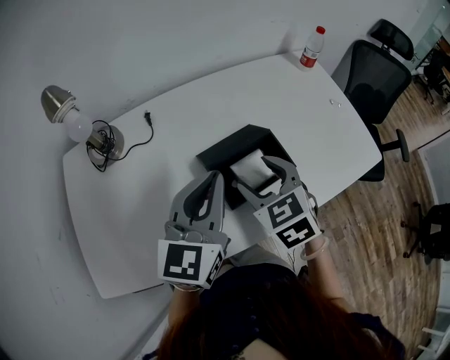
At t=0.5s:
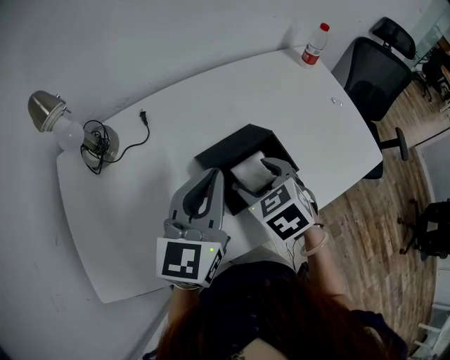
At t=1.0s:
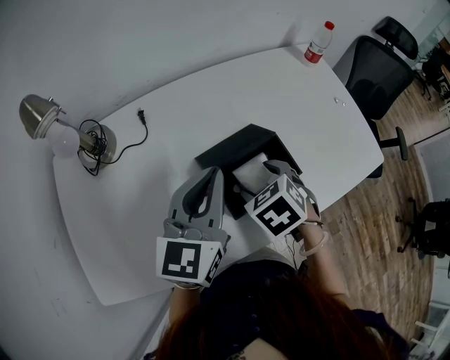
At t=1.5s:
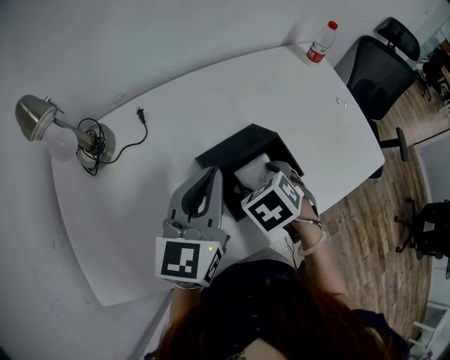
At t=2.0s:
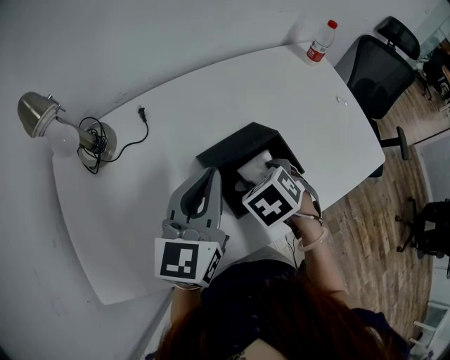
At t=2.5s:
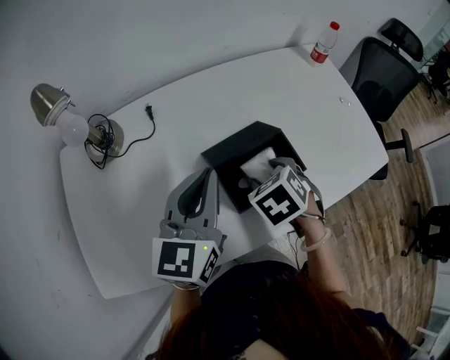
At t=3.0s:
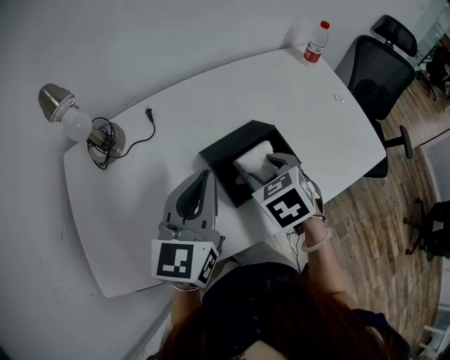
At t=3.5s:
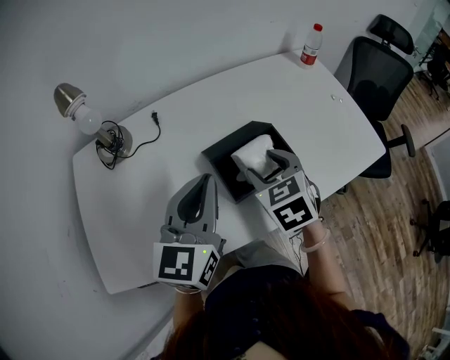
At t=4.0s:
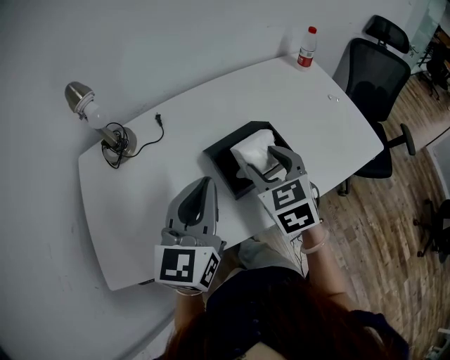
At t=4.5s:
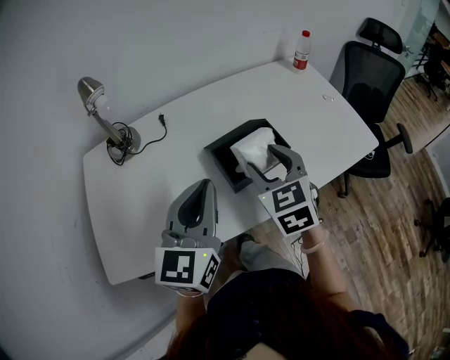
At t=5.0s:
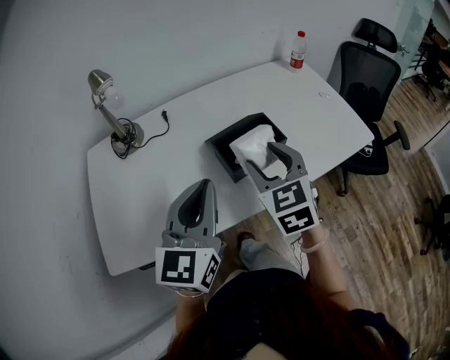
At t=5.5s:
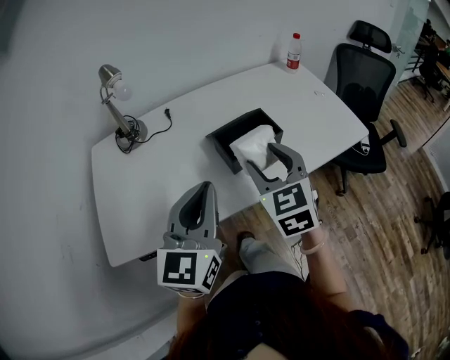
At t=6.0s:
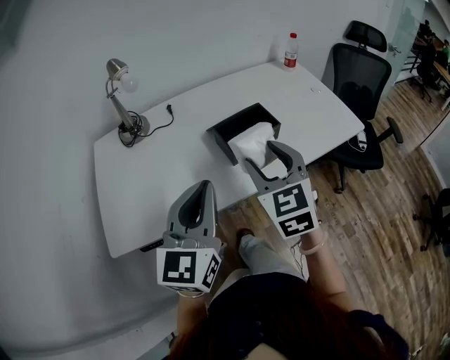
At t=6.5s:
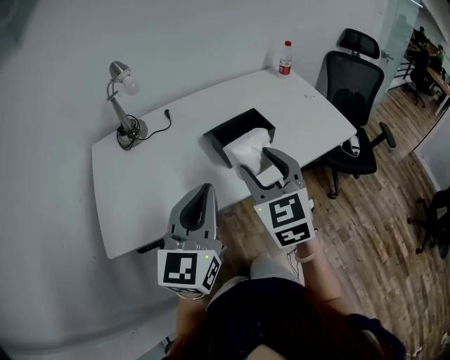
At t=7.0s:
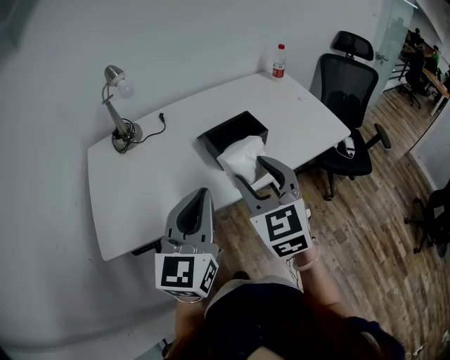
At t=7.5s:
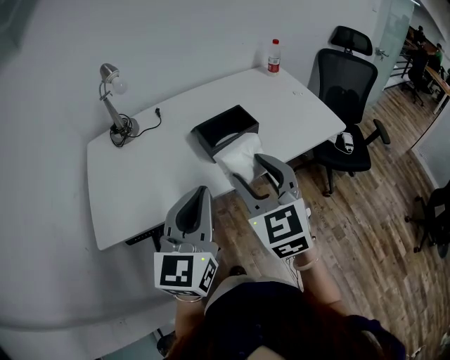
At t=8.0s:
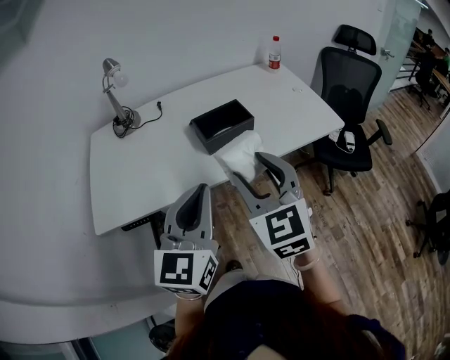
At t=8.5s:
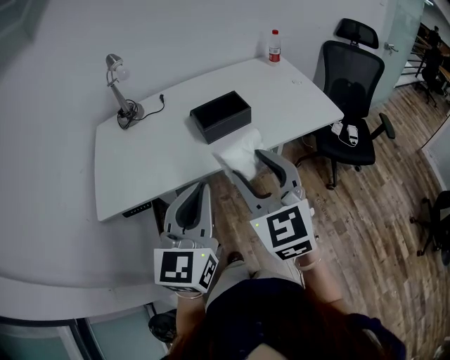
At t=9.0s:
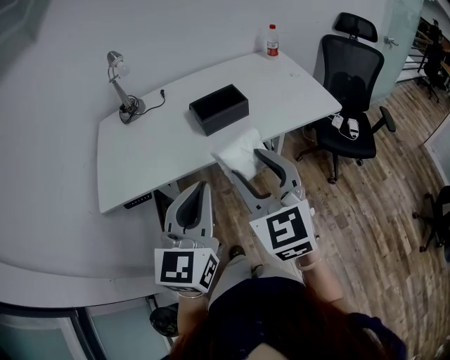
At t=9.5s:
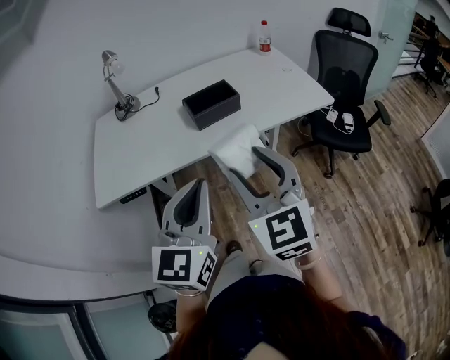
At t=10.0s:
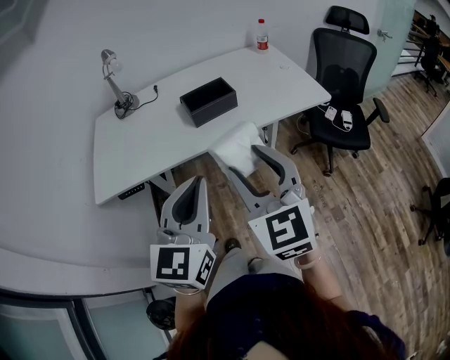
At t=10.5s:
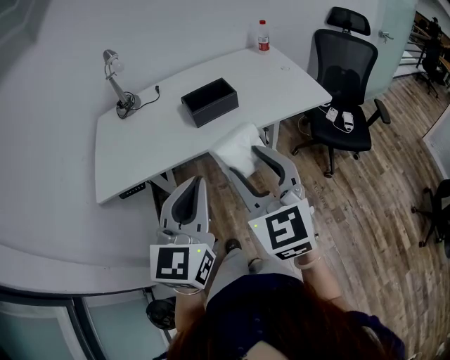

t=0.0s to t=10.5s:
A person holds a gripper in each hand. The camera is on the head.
t=0.0s to t=2.0s: The right gripper travels downward by roughly 10 cm, and angles its fingers downward, by some 30 degrees.
t=2.0s to t=4.0s: The right gripper travels upward by some 10 cm, and tips its fingers upward by approximately 40 degrees; the left gripper moves backward, roughly 10 cm.
t=4.0s to t=6.5s: The right gripper goes about 20 cm backward and upward. The left gripper travels backward by about 20 cm.
t=6.5s to t=8.5s: Both grippers move backward and to the right, approximately 15 cm.
t=8.5s to t=10.5s: Both grippers travel together backward, approximately 10 cm.

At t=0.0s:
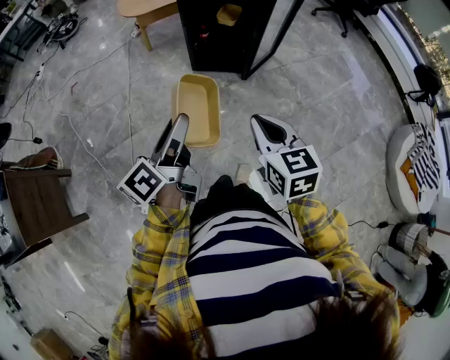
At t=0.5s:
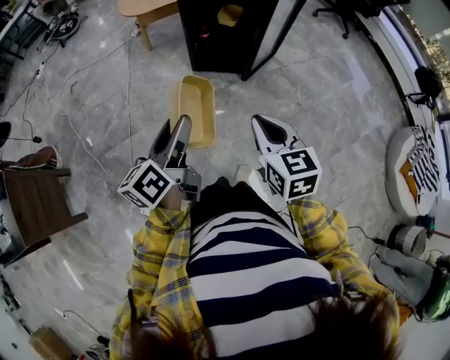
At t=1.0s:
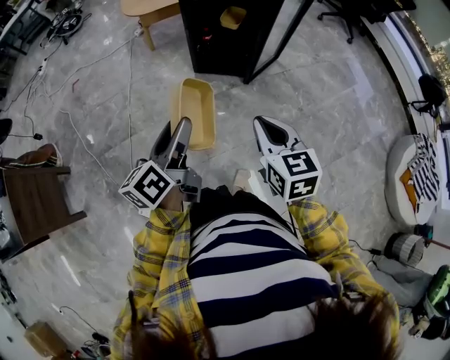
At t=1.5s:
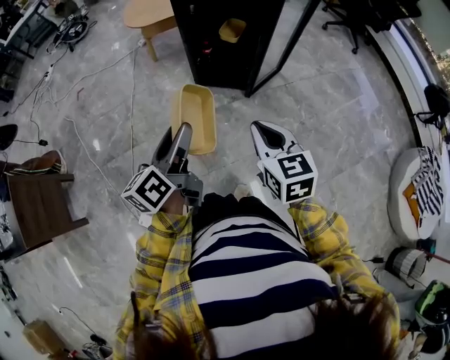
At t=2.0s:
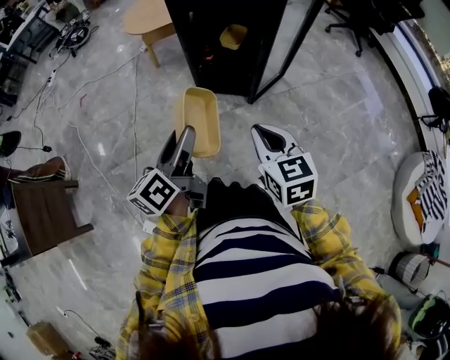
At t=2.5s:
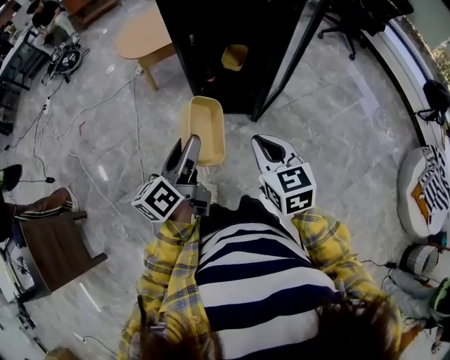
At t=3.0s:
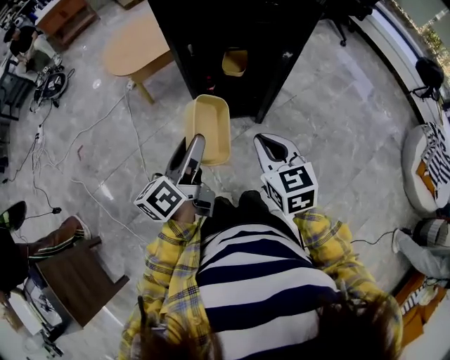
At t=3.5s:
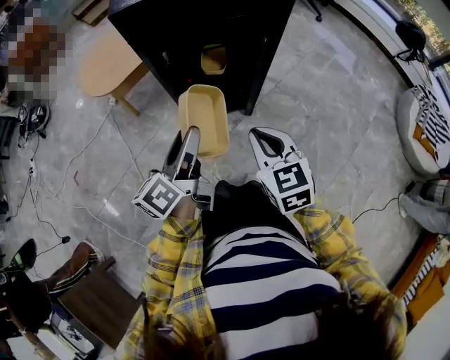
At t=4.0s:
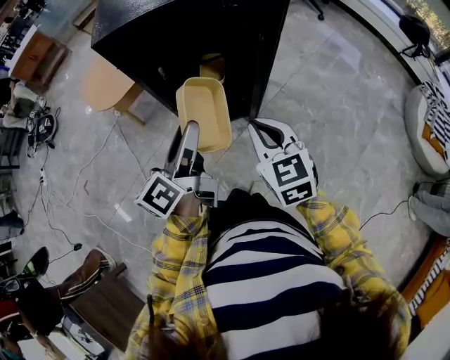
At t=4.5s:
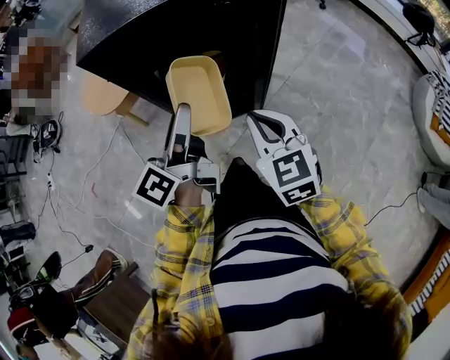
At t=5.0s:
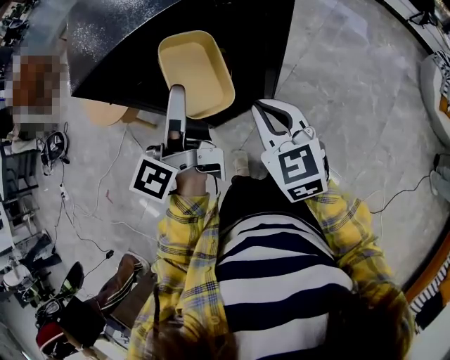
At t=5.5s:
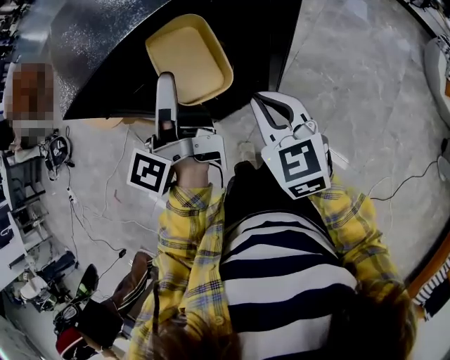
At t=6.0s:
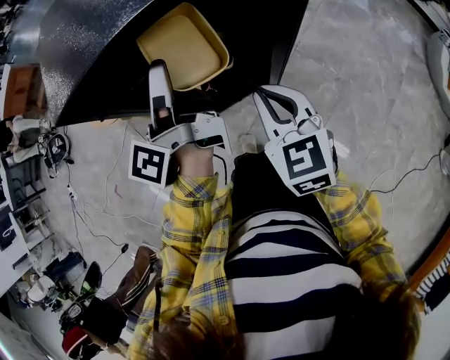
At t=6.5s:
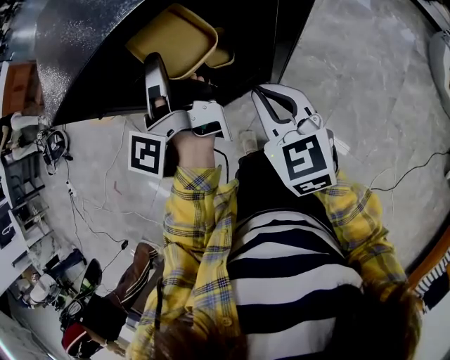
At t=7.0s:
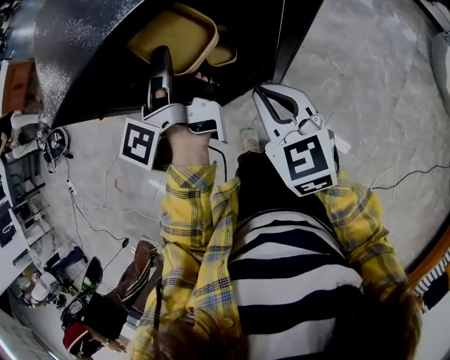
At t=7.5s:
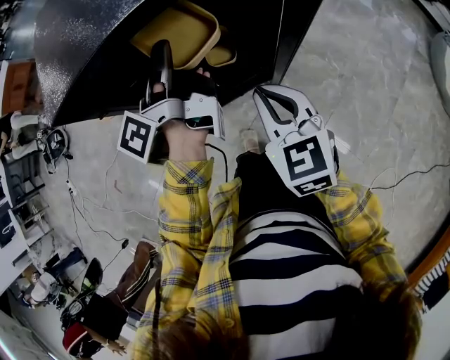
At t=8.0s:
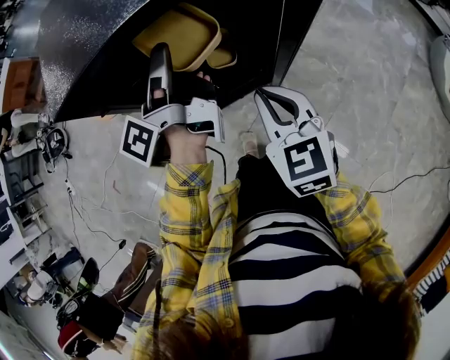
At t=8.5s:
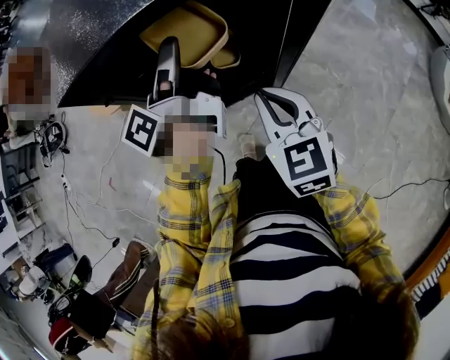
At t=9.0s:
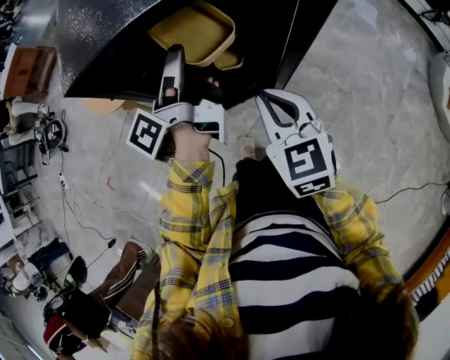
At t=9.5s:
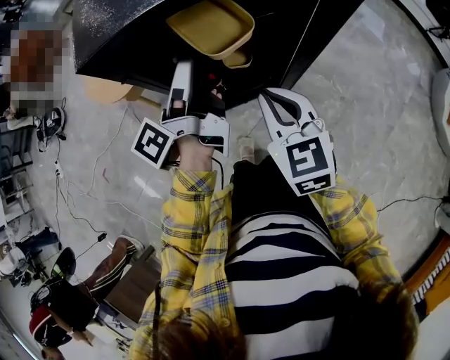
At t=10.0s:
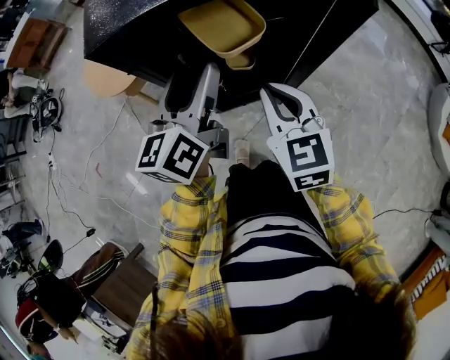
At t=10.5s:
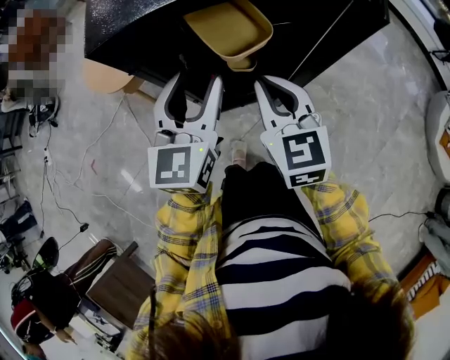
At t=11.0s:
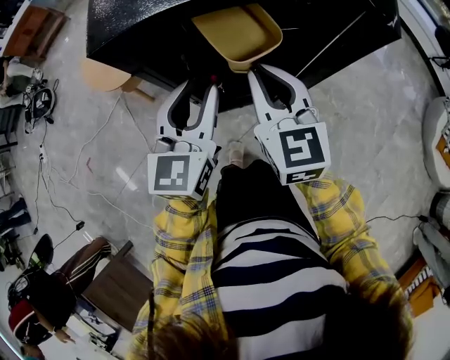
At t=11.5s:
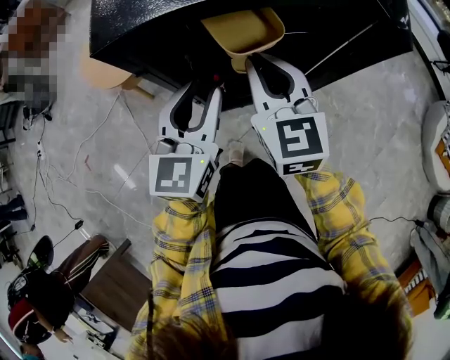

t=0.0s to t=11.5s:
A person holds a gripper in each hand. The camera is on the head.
t=0.0s to t=2.0s: The grippers both shift forward and to the right by approximately 15 cm.
t=2.0s to t=4.0s: Both grippers move forward, approximately 20 cm. The left gripper rotates some 20 degrees; the right gripper rotates some 20 degrees.
t=4.0s to t=6.0s: The right gripper goes roughly 10 cm forward, while the left gripper heads forward, covering roughly 20 cm, and changes its angle by approximately 20 degrees.
t=6.0s to t=7.5s: The grippers stay close to where they were, moving slightly.
t=7.5s to t=9.5s: The left gripper ends up some 5 cm from where it was.
t=9.5s to t=11.5s: The right gripper travels forward by approximately 10 cm, while the left gripper rolls clockwise, seen from behind, by about 80 degrees, and closes.

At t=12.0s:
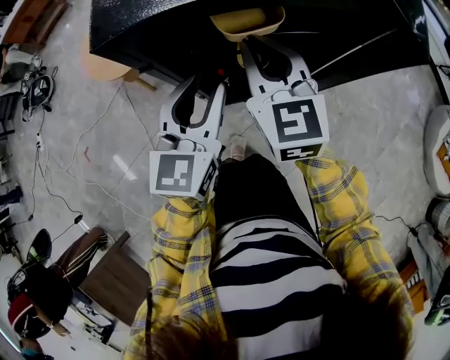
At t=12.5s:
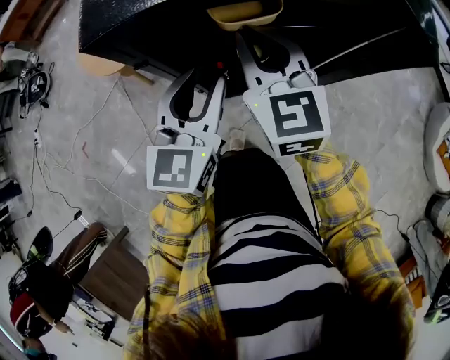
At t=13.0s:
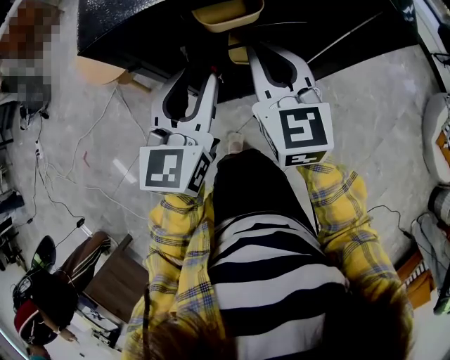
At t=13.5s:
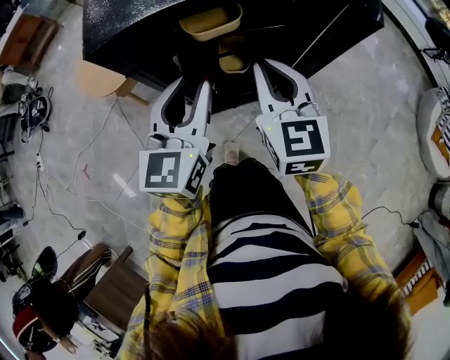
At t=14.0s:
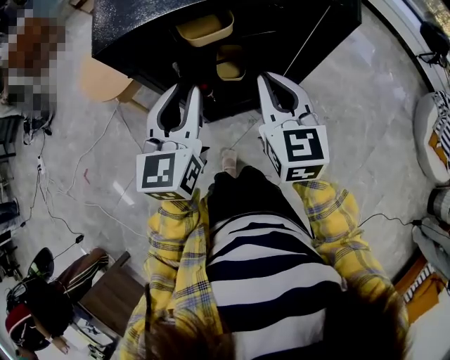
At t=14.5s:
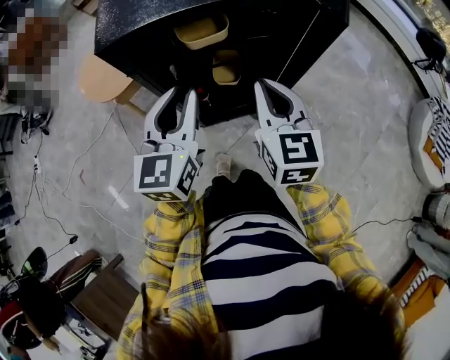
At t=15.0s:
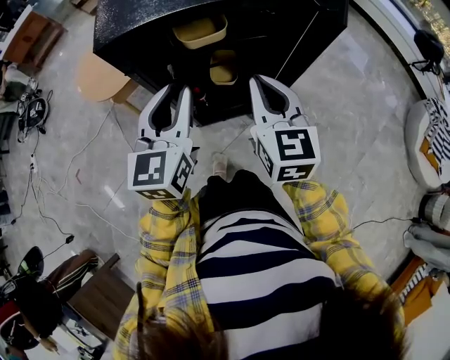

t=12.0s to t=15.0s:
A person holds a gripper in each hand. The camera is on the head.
t=12.0s to t=13.5s: The right gripper travels to the right by some 5 cm.
t=13.5s to t=15.0s: There are only small adjustments of the grippers.

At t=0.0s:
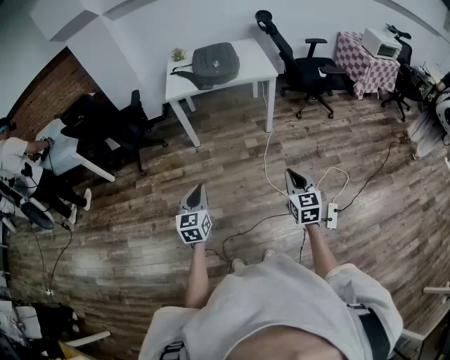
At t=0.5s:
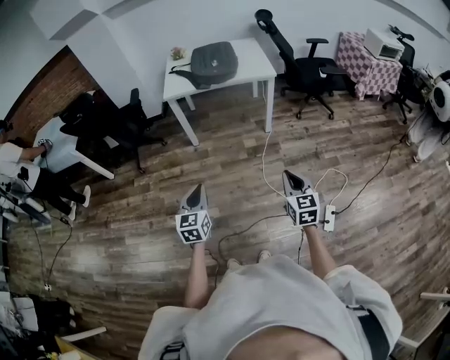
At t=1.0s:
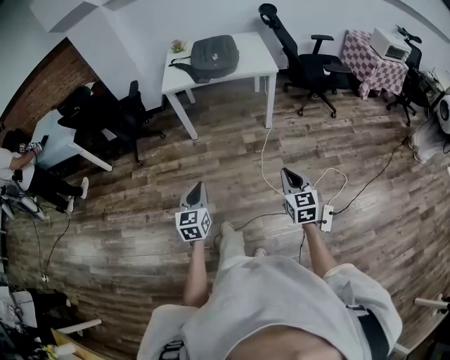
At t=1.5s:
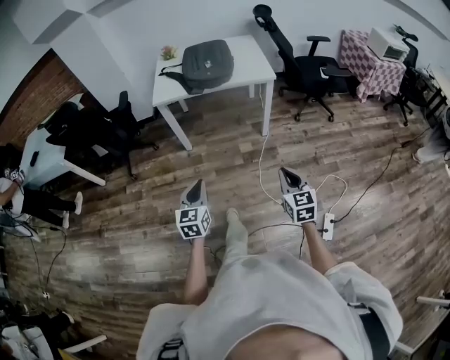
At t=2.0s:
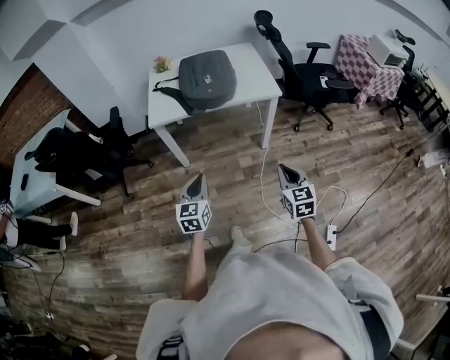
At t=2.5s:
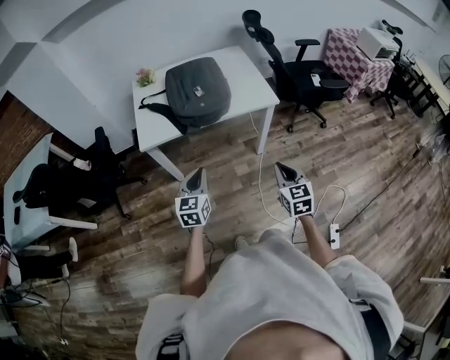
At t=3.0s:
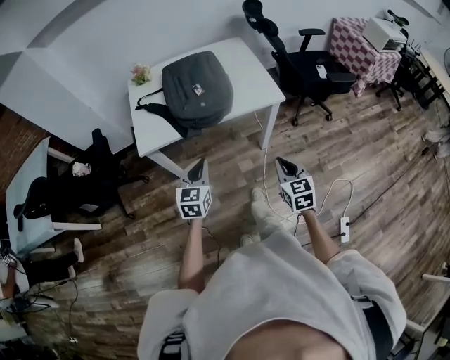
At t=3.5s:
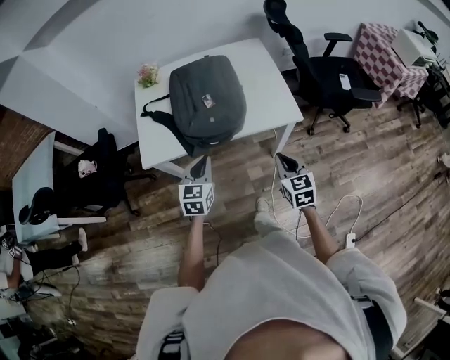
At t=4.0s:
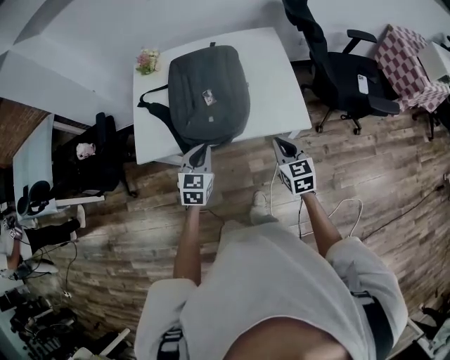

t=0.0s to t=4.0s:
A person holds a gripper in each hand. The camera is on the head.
t=0.0s to t=2.0s: The two grippers go about 30 cm forward.
t=2.0s to t=4.0s: The two grippers travel together, forward, some 50 cm.
